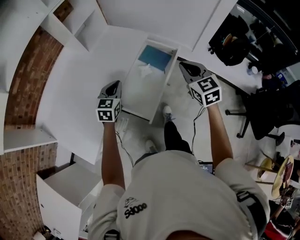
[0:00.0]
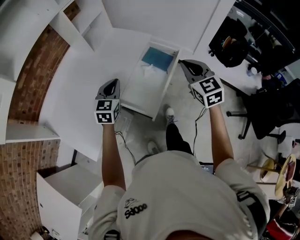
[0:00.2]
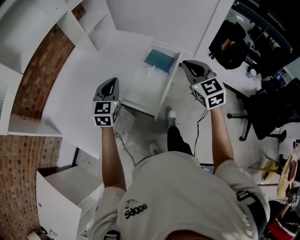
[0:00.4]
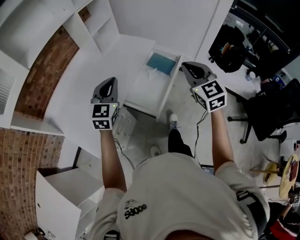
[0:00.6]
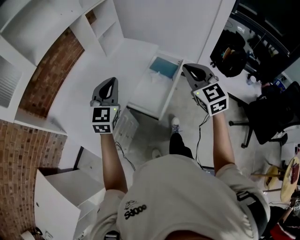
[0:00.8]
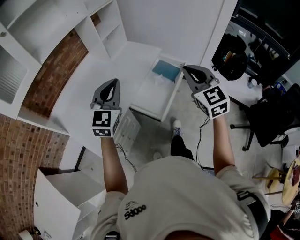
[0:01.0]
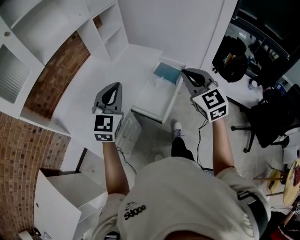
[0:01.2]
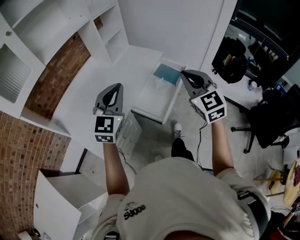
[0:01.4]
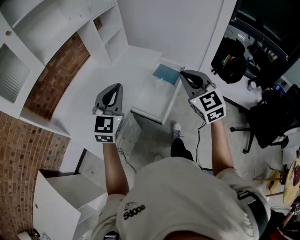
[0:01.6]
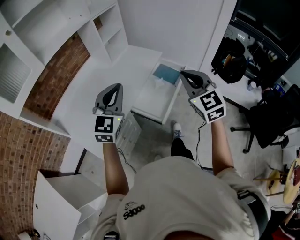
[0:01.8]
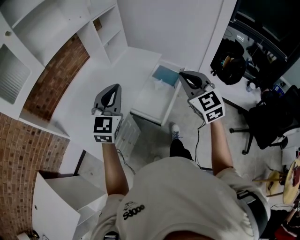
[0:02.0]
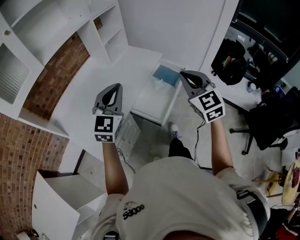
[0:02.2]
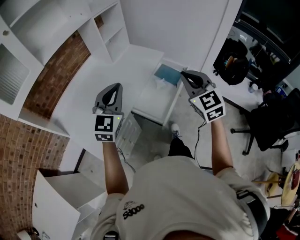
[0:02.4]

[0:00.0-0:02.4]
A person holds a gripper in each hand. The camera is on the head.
0.0 to 1.2 s: The right gripper is displaced backward, upward and to the left by some 25 cm. The left gripper heads upward and backward, covering some 30 cm, and turns by approximately 30 degrees.
1.2 to 2.4 s: There are only small adjustments of the grippers.

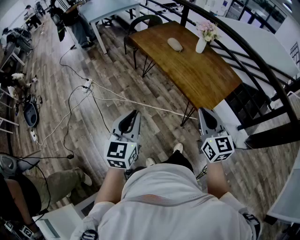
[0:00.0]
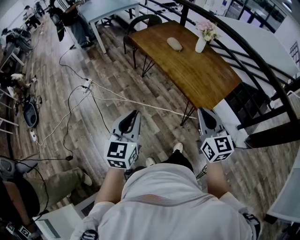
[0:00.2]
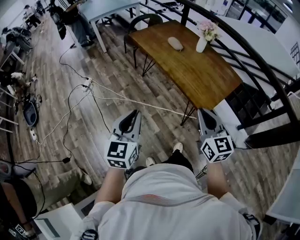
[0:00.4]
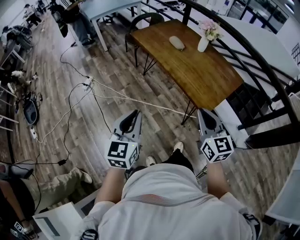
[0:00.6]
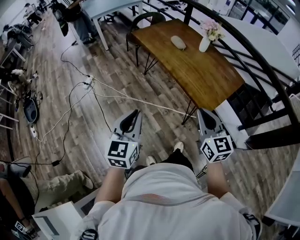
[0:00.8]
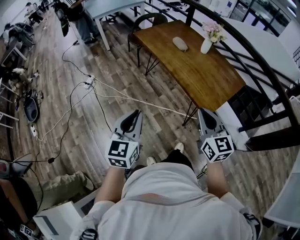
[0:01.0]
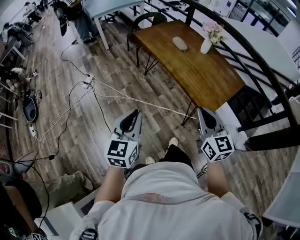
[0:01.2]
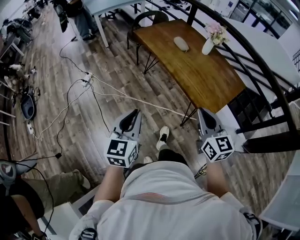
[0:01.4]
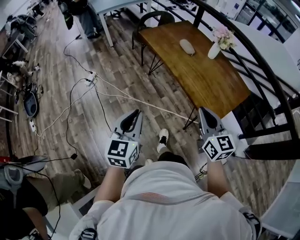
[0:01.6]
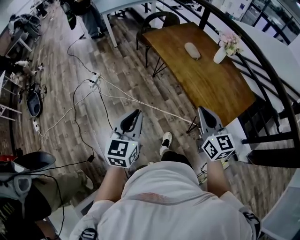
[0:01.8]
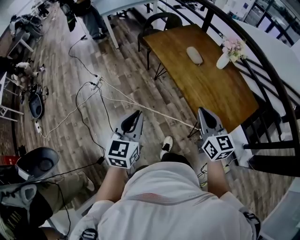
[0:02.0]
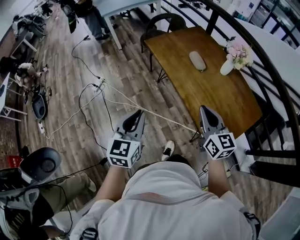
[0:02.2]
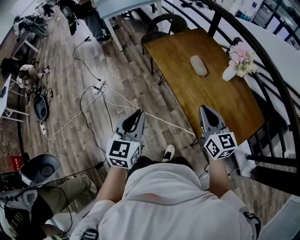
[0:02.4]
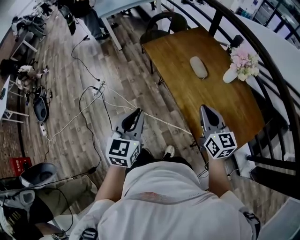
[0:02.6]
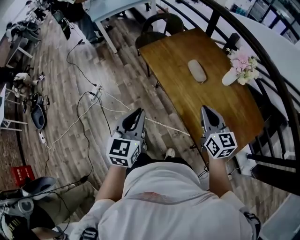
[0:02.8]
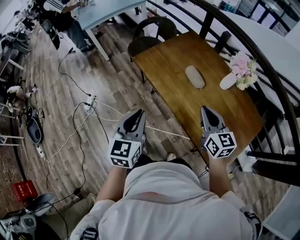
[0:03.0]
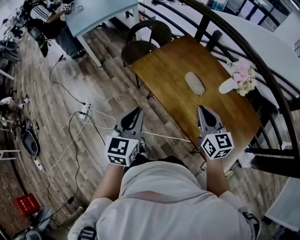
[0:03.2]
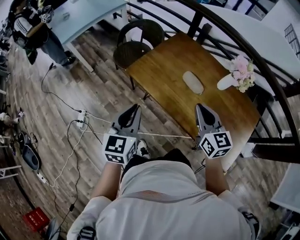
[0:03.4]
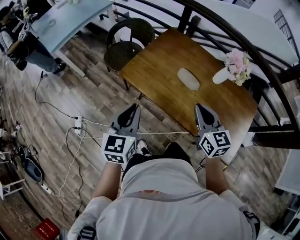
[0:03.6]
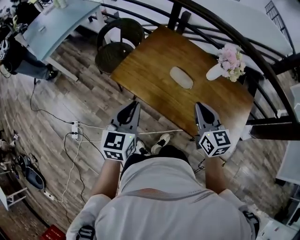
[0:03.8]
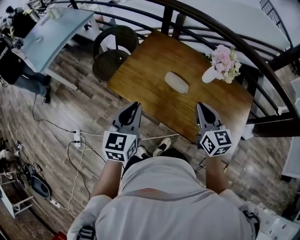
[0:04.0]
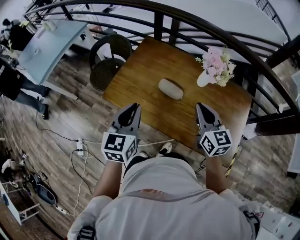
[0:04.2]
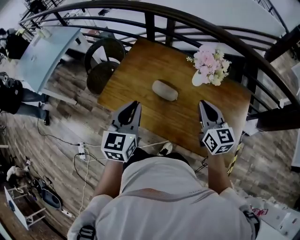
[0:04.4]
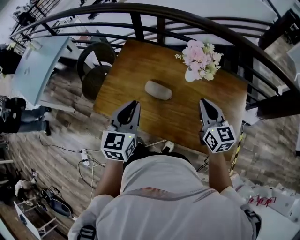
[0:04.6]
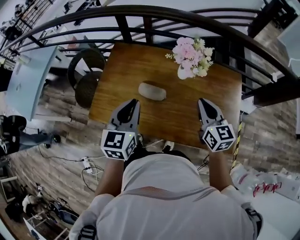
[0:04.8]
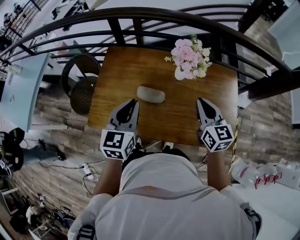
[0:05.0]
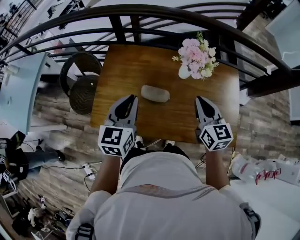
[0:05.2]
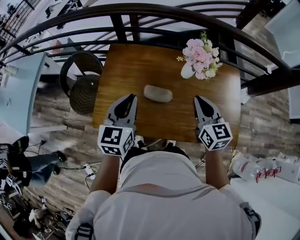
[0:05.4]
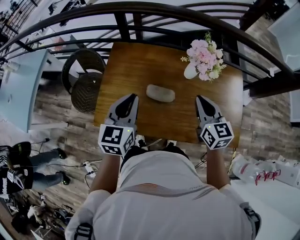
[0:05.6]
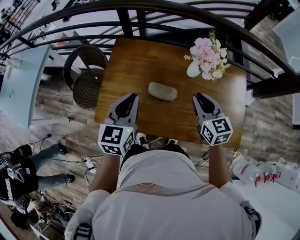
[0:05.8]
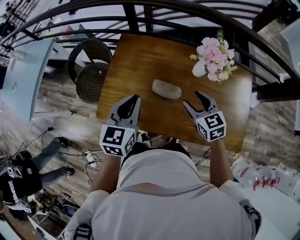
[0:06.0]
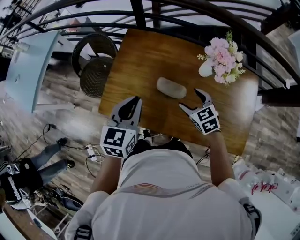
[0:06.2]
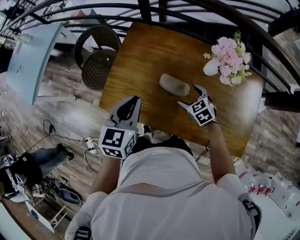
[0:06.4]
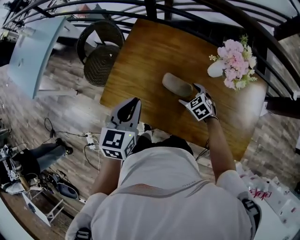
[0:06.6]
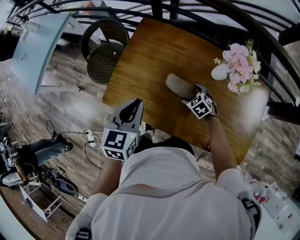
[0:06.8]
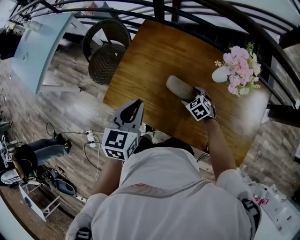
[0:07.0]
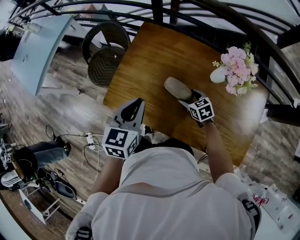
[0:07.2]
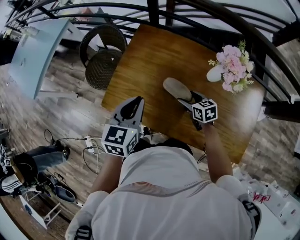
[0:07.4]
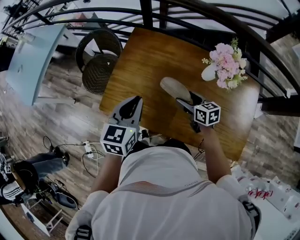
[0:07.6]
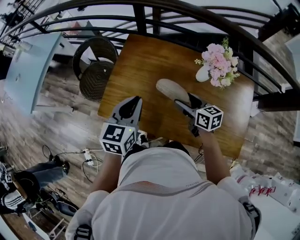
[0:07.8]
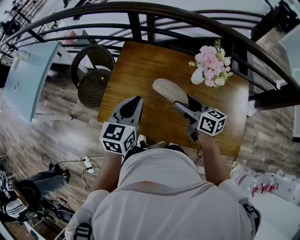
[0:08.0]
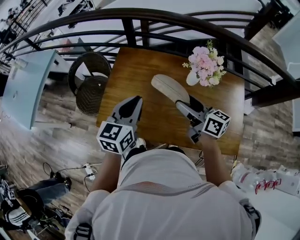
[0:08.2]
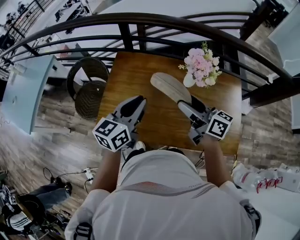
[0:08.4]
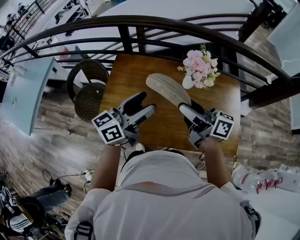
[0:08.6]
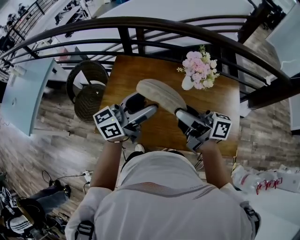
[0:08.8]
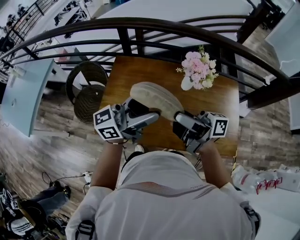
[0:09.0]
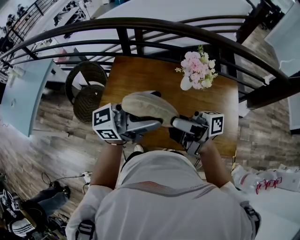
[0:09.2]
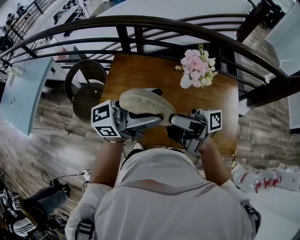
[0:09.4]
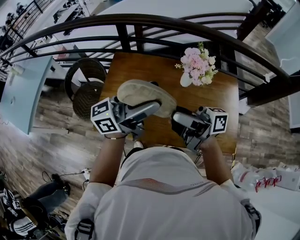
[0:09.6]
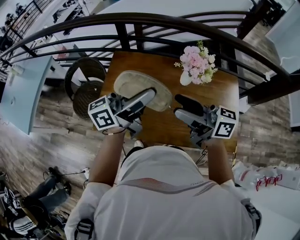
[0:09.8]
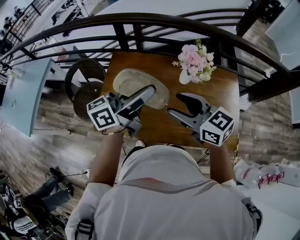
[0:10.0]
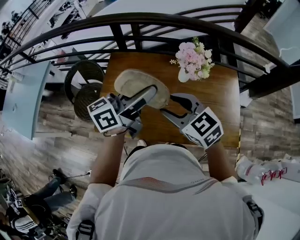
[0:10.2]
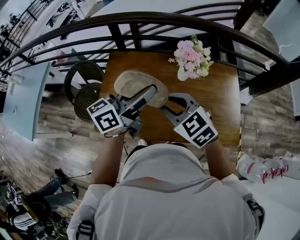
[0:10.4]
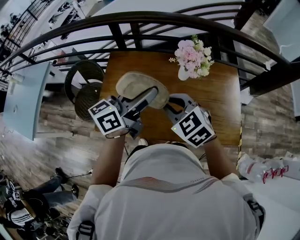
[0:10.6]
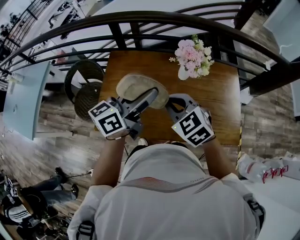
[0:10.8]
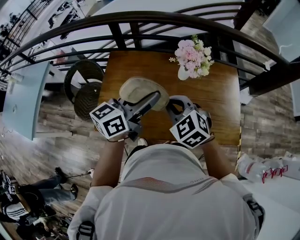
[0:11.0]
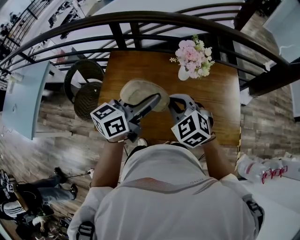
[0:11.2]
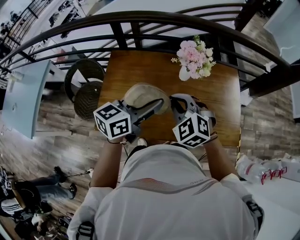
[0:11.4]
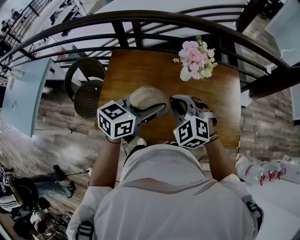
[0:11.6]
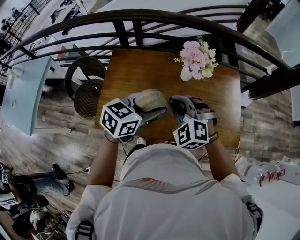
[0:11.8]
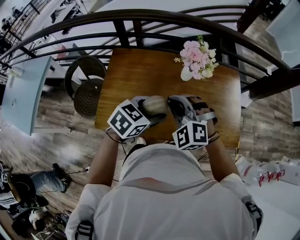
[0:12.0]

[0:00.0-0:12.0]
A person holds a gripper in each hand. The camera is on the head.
0.0 to 1.6 s: The two grippers go about 10 cm forward.
1.6 to 3.0 s: Both grippers travel together forward, some 40 cm.
3.0 to 4.4 s: The left gripper moves about 25 cm, and swivels about 30 degrees; the right gripper changes place by approximately 15 cm, and rotates roughly 30 degrees.
4.4 to 6.0 s: The left gripper goes roughly 10 cm forward, while the right gripper goes about 15 cm downward, to the left and forward, rotates approximately 20 degrees, and opens.
6.0 to 7.6 s: The right gripper moves downward, some 10 cm, and changes its angle by about 30 degrees.
7.6 to 9.0 s: The right gripper goes approximately 30 cm upward, and angles its fingers upward, by approximately 60 degrees; the left gripper goes approximately 15 cm upward, tips its fingers upward by approximately 50 degrees, and opens its fingers.
9.0 to 10.4 s: The right gripper moves downward, some 5 cm, angles its fingers downward, by roughly 50 degrees, and closes its fingers. The left gripper swivels roughly 20 degrees.
10.4 to 12.0 s: The right gripper swivels approximately 40 degrees; the left gripper is displaced downward and backward by some 15 cm, and tilts its fingers roughly 50 degrees downward.

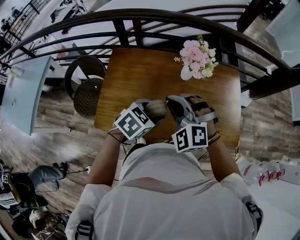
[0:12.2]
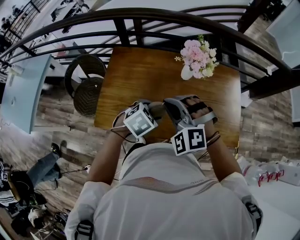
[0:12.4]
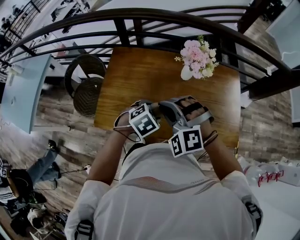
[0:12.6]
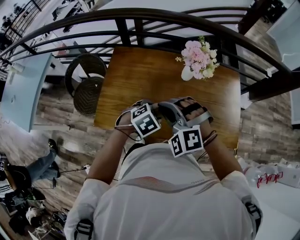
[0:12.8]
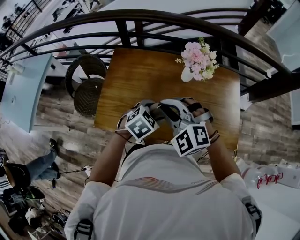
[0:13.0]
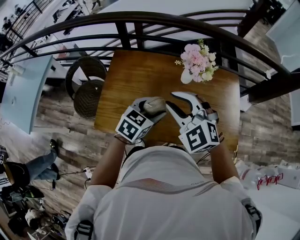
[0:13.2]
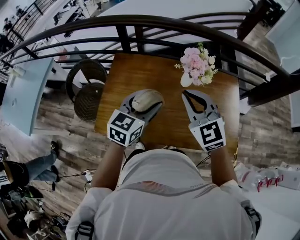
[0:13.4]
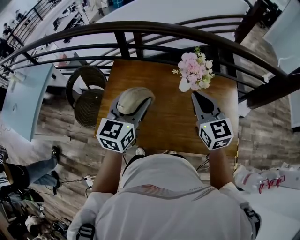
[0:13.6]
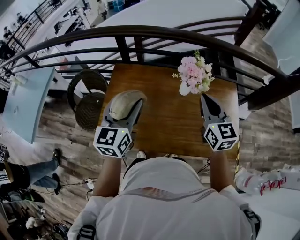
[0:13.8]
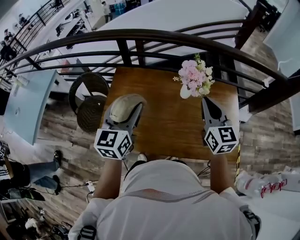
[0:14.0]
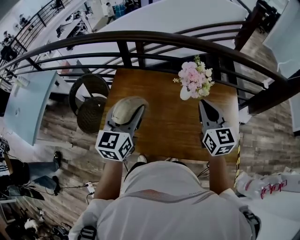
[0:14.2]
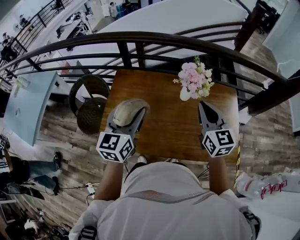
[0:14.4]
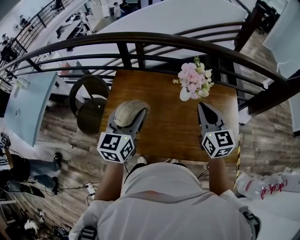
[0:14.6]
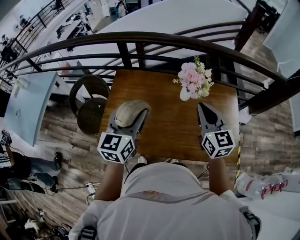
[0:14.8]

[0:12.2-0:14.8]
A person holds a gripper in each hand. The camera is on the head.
12.2 to 13.4 s: The right gripper shifts about 5 cm upward, and rotates about 40 degrees. The left gripper travels upward and forward by some 10 cm, and changes its angle by some 40 degrees.
13.4 to 14.8 s: The right gripper shifts about 10 cm to the right, and swivels approximately 30 degrees; the left gripper travels to the left by some 5 cm.

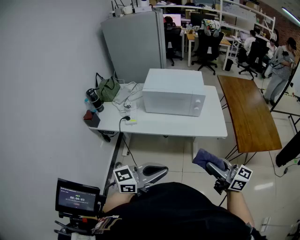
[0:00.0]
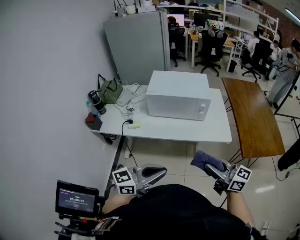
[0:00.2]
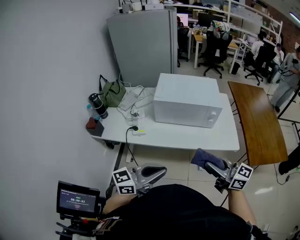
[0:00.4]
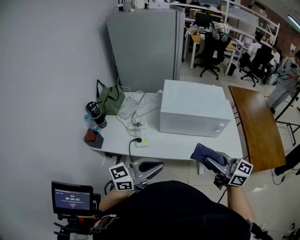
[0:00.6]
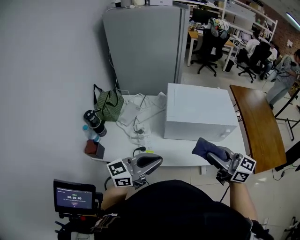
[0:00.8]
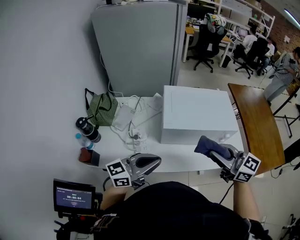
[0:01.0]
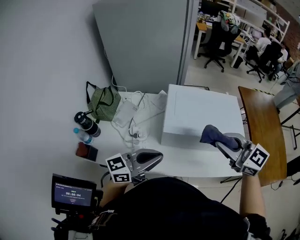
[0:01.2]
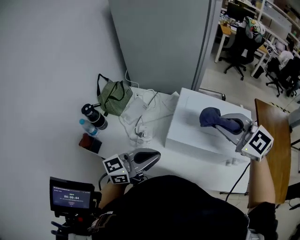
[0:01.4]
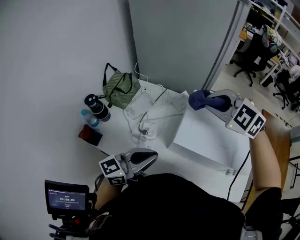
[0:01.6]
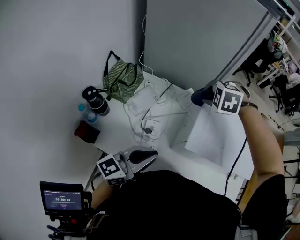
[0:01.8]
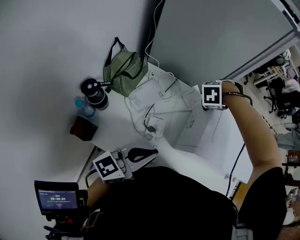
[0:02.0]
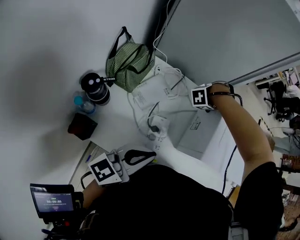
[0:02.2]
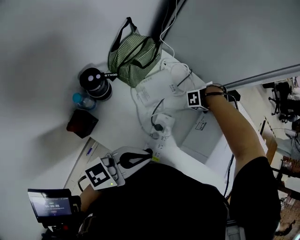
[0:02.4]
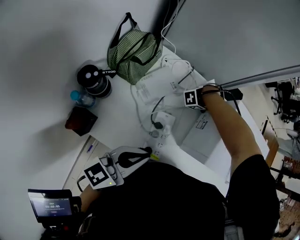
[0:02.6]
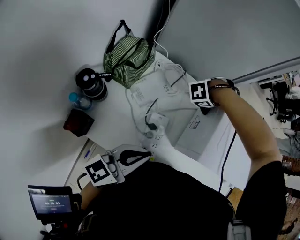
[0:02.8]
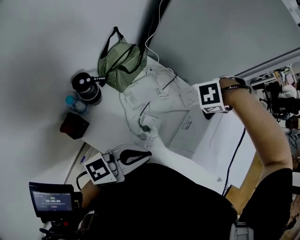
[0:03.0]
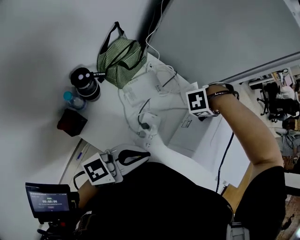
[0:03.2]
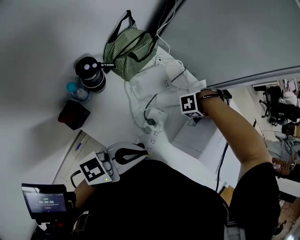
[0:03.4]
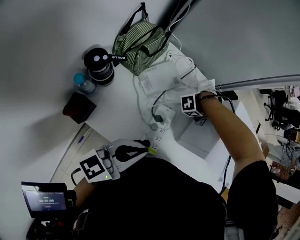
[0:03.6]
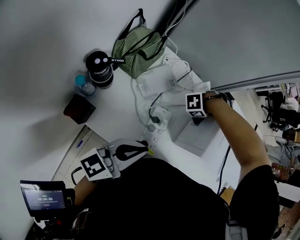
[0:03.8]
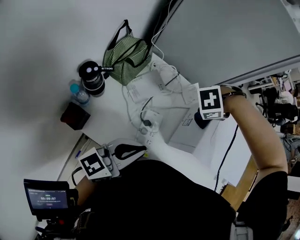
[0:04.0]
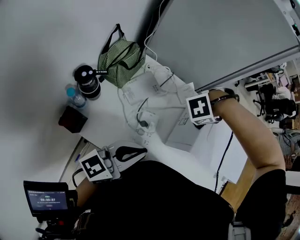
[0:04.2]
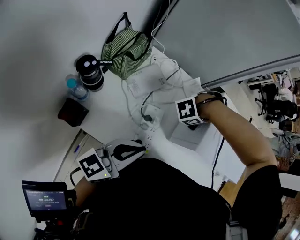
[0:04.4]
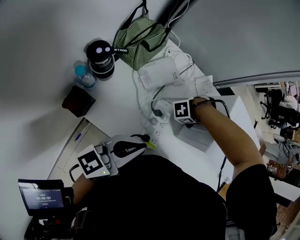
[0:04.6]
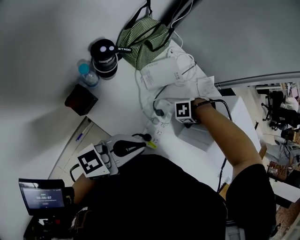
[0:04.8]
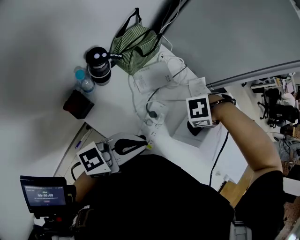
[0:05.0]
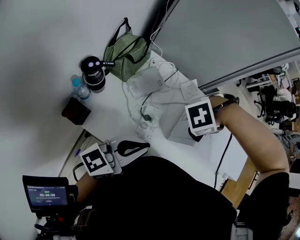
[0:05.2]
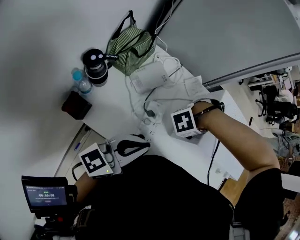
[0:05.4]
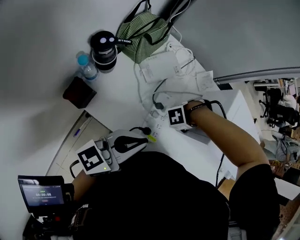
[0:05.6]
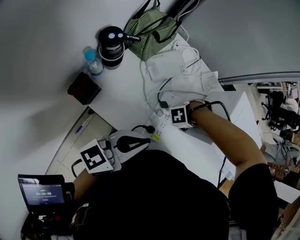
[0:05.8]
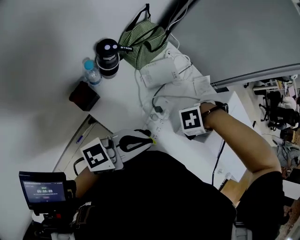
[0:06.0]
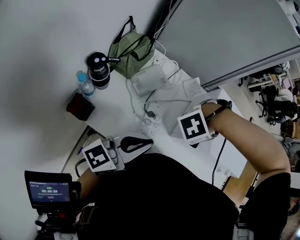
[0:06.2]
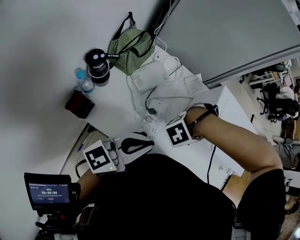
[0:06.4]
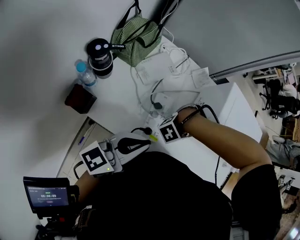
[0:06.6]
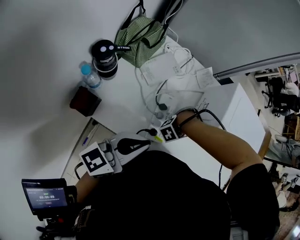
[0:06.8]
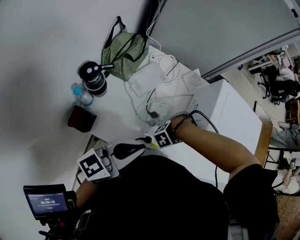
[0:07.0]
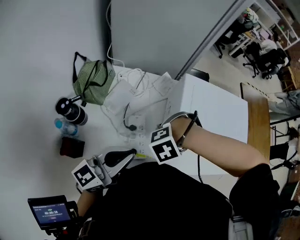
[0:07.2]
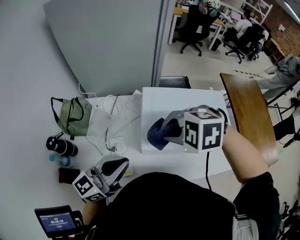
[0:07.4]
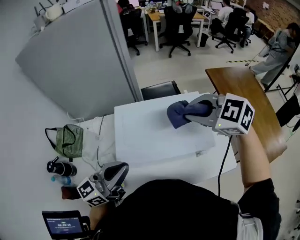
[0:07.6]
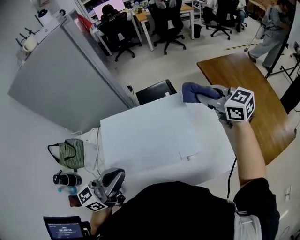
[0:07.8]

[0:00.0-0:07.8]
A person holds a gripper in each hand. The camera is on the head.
0.0 to 1.6 s: Both grippers are carried forward and to the left, about 60 cm. The right gripper points its fingers roughly 50 degrees further downward. The left gripper changes its angle by roughly 20 degrees.
1.6 to 3.2 s: The left gripper ends up approximately 15 cm from where it was; the right gripper moves up and down over about 40 cm, changing direction 2 times, and rotates about 90 degrees.
3.2 to 4.6 s: The left gripper shifts by approximately 5 cm; the right gripper goes up and down, about 20 cm each way, reversing 2 times.
4.6 to 6.2 s: The left gripper swings up and down, about 5 cm each way, with 2 reversals, while the right gripper goes up and down, about 20 cm each way, reversing 2 times.
6.2 to 7.8 s: The right gripper goes up and down, about 40 cm each way, reversing 2 times, and points its fingers about 40 degrees further upward. Meanwhile the left gripper shifts by roughly 35 cm, and rotates approximately 20 degrees.
